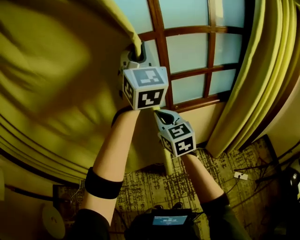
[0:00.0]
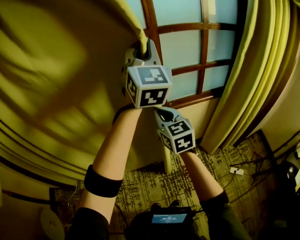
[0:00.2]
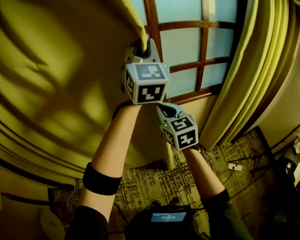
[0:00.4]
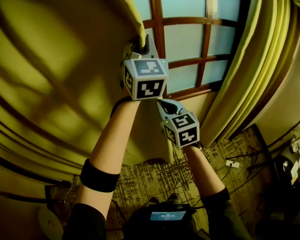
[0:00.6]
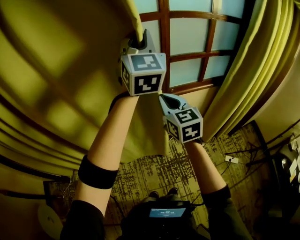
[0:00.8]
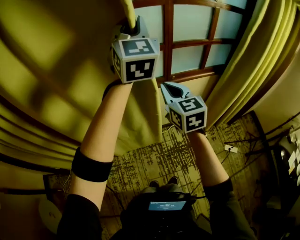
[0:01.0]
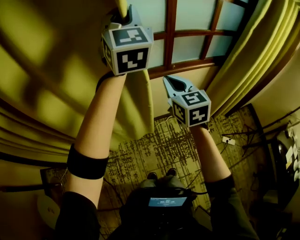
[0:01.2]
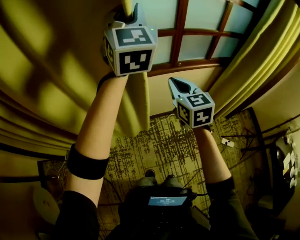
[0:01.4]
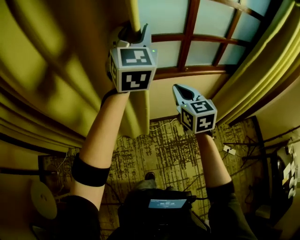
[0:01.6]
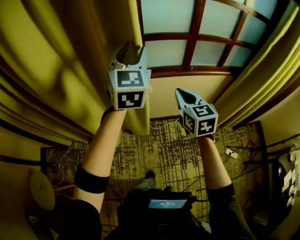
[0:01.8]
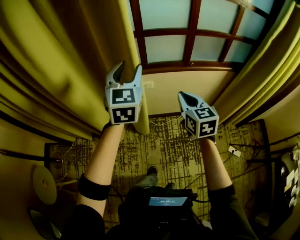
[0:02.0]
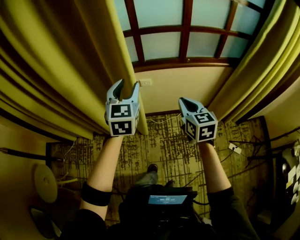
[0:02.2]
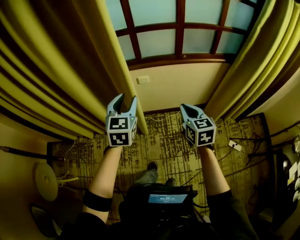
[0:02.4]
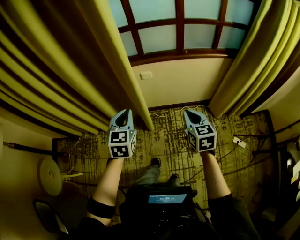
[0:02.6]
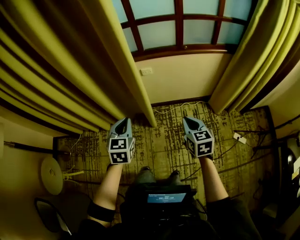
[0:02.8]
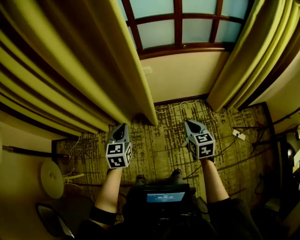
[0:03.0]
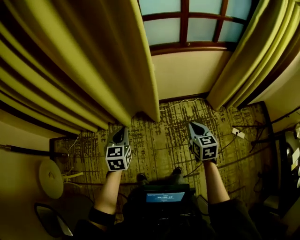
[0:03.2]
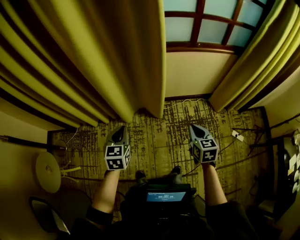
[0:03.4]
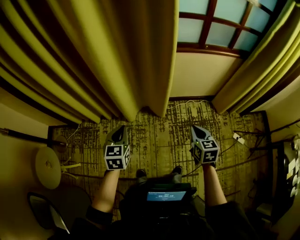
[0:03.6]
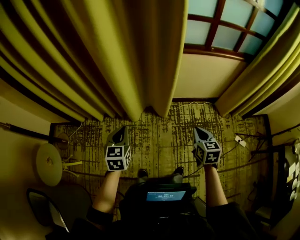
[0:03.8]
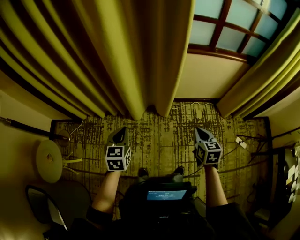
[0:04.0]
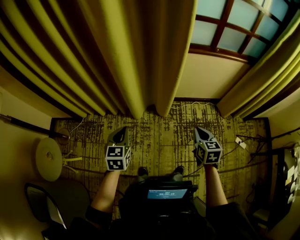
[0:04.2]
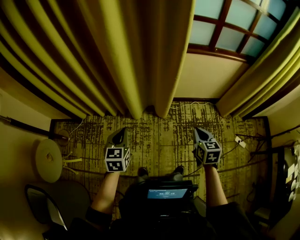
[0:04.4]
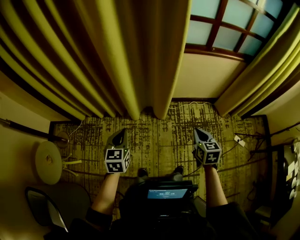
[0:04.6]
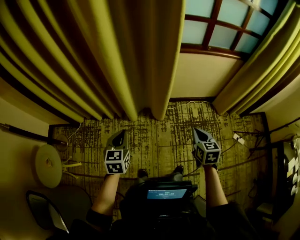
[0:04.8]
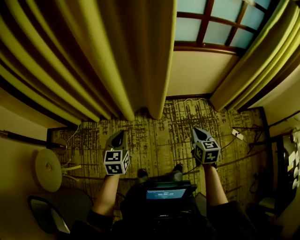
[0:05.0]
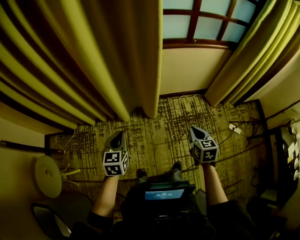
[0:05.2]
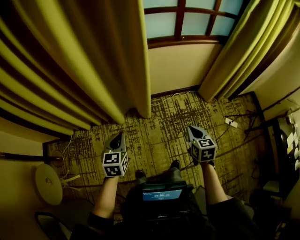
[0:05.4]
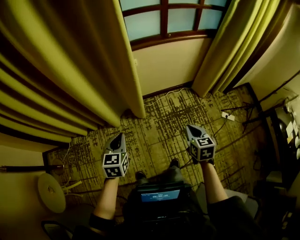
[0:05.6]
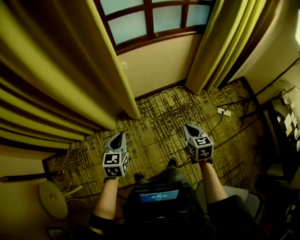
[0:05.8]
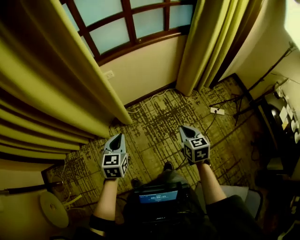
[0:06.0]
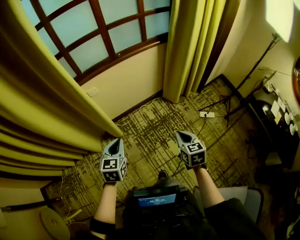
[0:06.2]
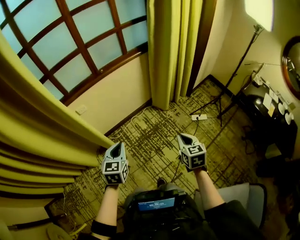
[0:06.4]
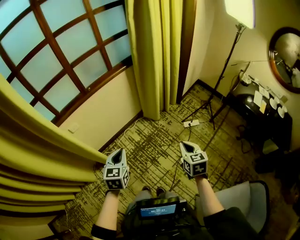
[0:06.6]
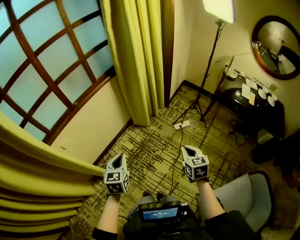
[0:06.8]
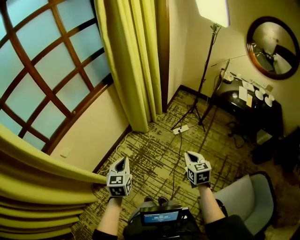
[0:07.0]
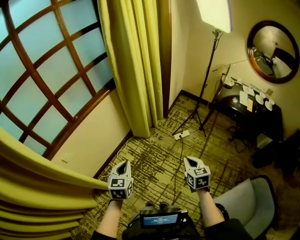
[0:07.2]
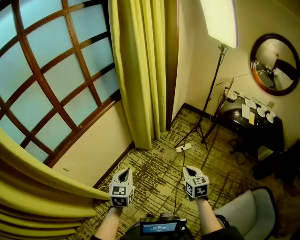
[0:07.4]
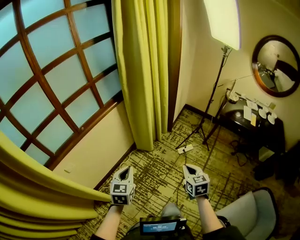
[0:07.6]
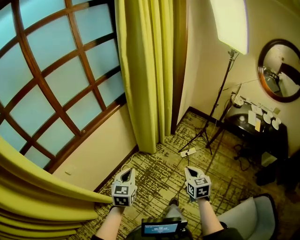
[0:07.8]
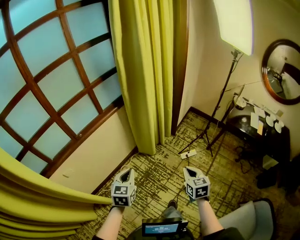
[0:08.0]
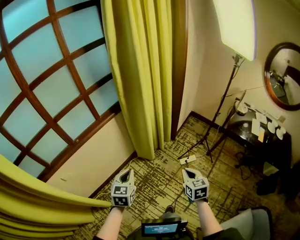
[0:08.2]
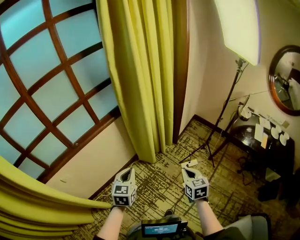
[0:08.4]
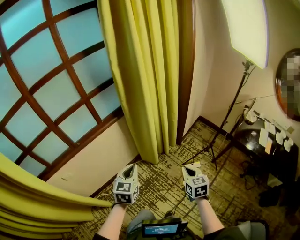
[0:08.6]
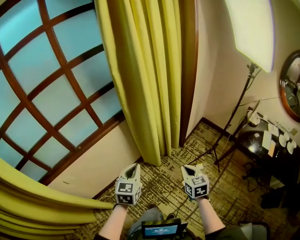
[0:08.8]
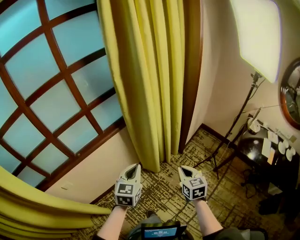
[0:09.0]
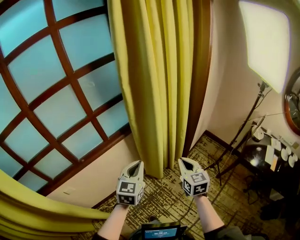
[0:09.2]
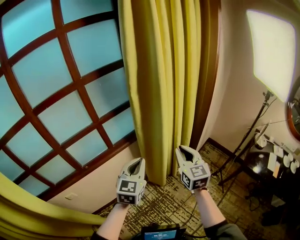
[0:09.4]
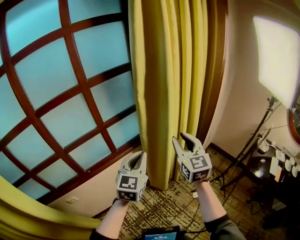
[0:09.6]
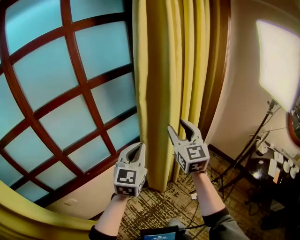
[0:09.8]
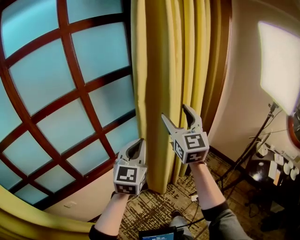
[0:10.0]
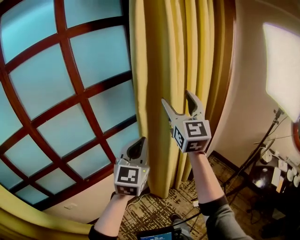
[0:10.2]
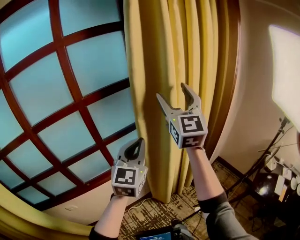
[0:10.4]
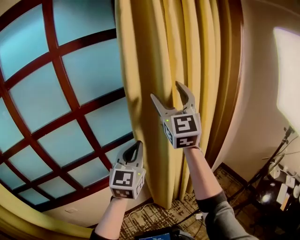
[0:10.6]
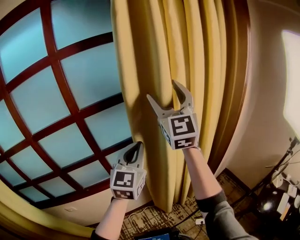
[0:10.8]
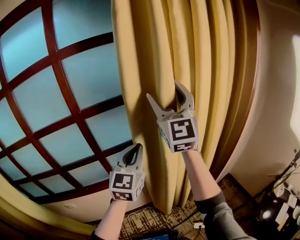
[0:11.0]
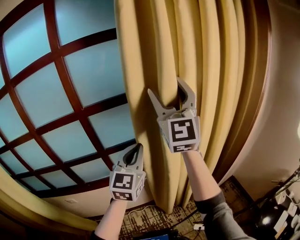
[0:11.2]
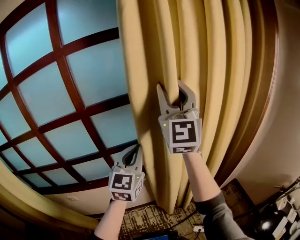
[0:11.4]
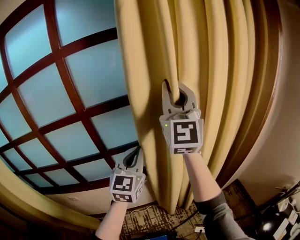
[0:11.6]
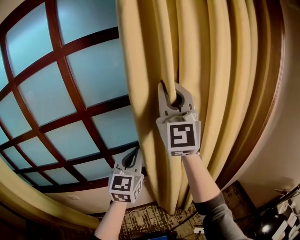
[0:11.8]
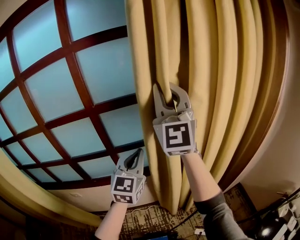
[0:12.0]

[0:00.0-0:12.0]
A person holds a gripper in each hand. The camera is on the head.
0:00.0 to 0:01.6: The left gripper heads to the left and downward, covering about 20 cm, and opens up, while the right gripper shifts approximately 10 cm downward and to the left.
0:01.6 to 0:03.0: The left gripper goes approximately 50 cm downward, backward and to the left, angles its fingers downward, by some 40 degrees, and closes its fingers; the right gripper moves backward and downward, about 35 cm.
0:03.0 to 0:04.4: The two grippers go approximately 20 cm to the left.
0:04.4 to 0:06.0: Both grippers move to the right, approximately 25 cm. The left gripper changes its angle by about 20 degrees.
0:06.0 to 0:07.6: The right gripper shifts by approximately 30 cm, and rotates some 30 degrees; the left gripper moves approximately 35 cm, and turns by some 30 degrees.
0:07.6 to 0:09.0: The right gripper heads forward, covering roughly 30 cm. Meanwhile the left gripper moves forward and to the right, some 30 cm.
0:09.0 to 0:10.4: The left gripper moves upward and forward, some 35 cm, and swivels approximately 30 degrees. Meanwhile the right gripper heads upward and forward, covering some 60 cm, angles its fingers upward, by about 50 degrees, and opens.
0:10.4 to 0:12.0: The left gripper heads forward, covering about 10 cm, and swivels some 20 degrees; the right gripper goes roughly 10 cm upward, forward and to the left, turns by roughly 30 degrees, and closes its fingers.

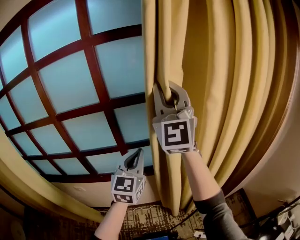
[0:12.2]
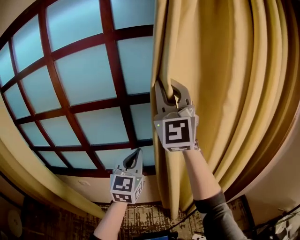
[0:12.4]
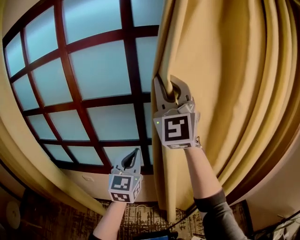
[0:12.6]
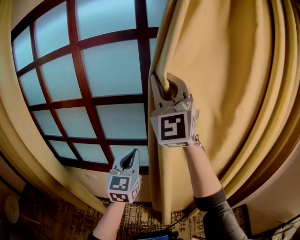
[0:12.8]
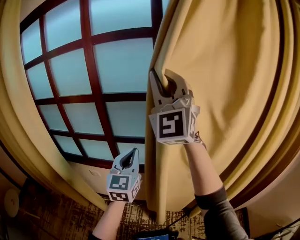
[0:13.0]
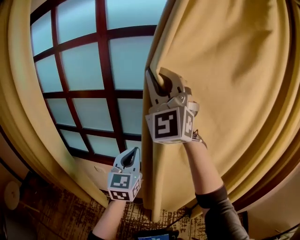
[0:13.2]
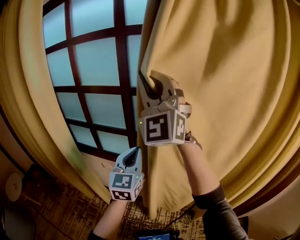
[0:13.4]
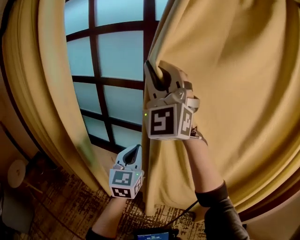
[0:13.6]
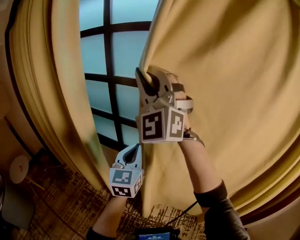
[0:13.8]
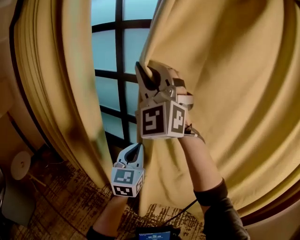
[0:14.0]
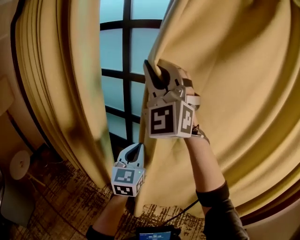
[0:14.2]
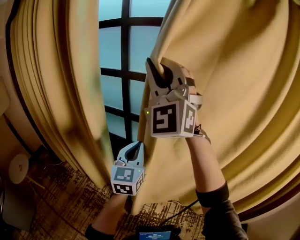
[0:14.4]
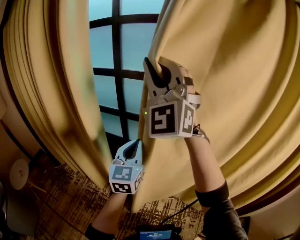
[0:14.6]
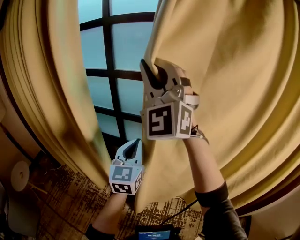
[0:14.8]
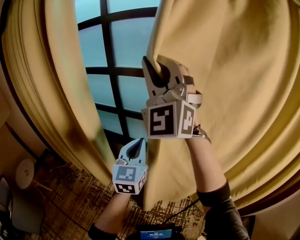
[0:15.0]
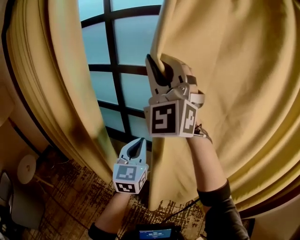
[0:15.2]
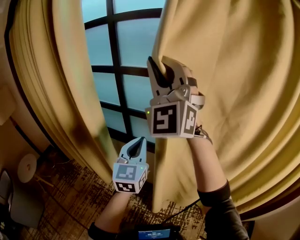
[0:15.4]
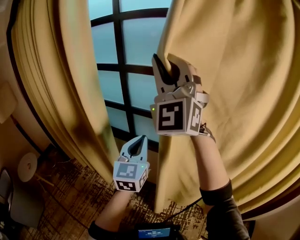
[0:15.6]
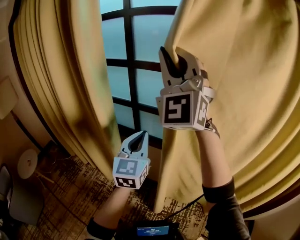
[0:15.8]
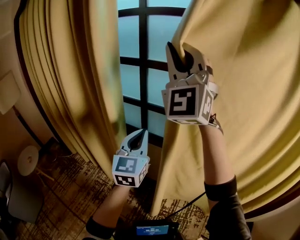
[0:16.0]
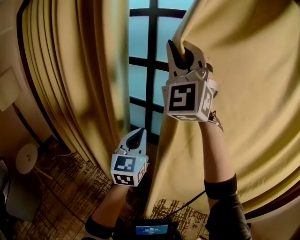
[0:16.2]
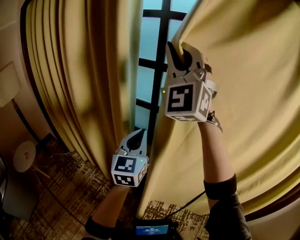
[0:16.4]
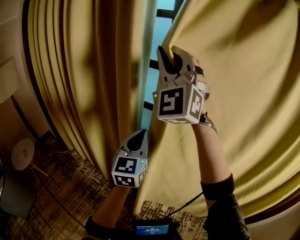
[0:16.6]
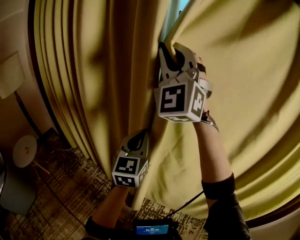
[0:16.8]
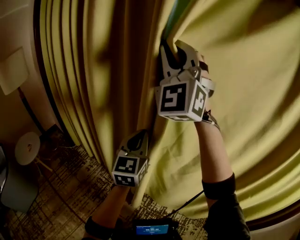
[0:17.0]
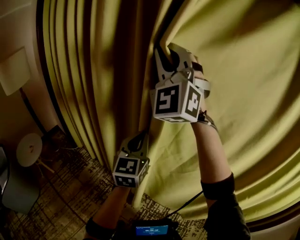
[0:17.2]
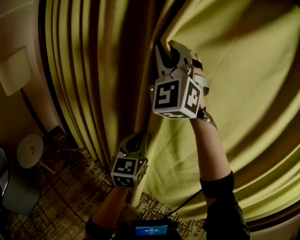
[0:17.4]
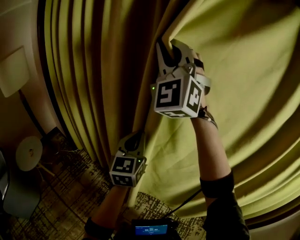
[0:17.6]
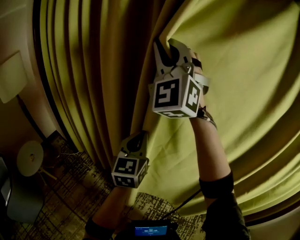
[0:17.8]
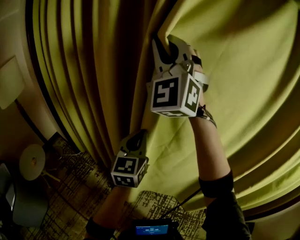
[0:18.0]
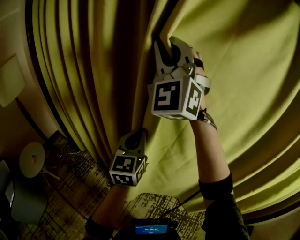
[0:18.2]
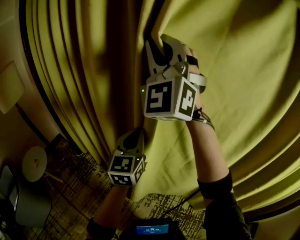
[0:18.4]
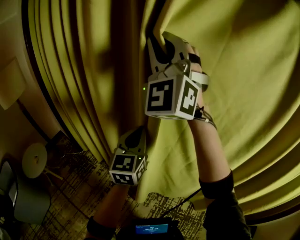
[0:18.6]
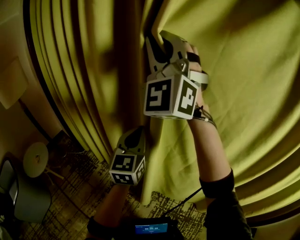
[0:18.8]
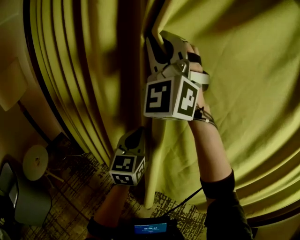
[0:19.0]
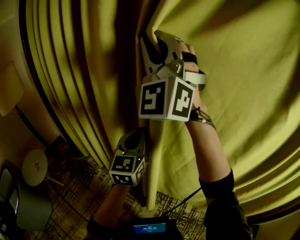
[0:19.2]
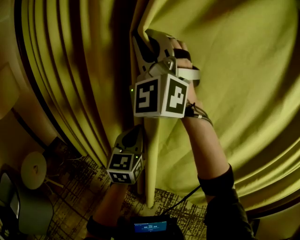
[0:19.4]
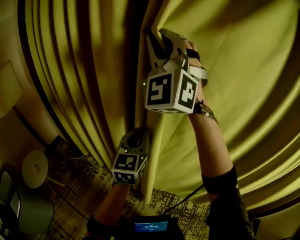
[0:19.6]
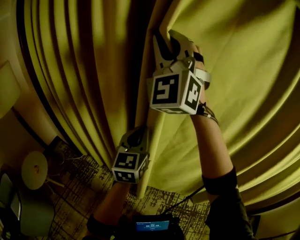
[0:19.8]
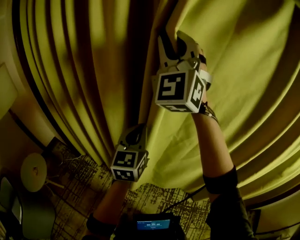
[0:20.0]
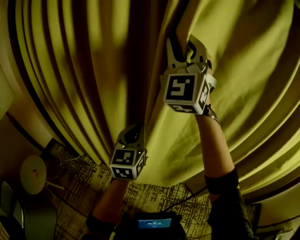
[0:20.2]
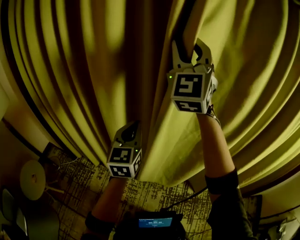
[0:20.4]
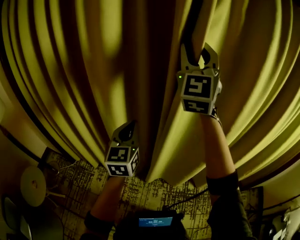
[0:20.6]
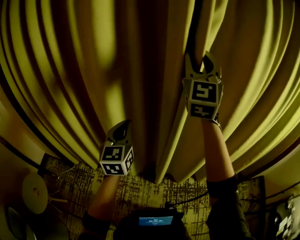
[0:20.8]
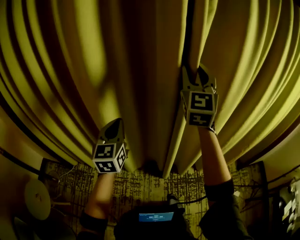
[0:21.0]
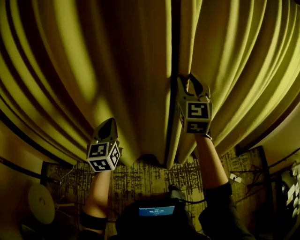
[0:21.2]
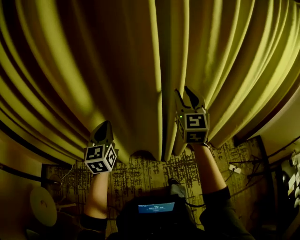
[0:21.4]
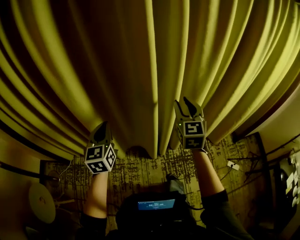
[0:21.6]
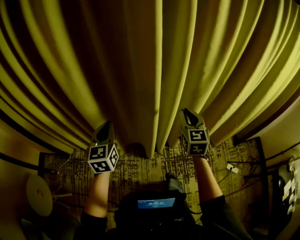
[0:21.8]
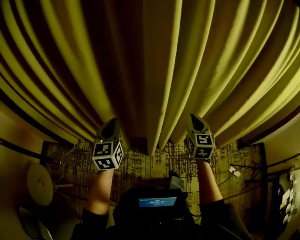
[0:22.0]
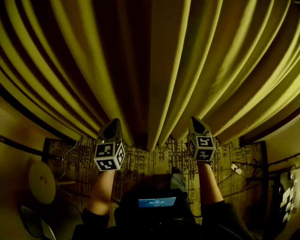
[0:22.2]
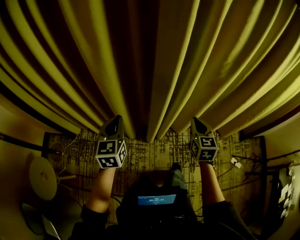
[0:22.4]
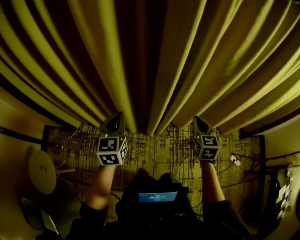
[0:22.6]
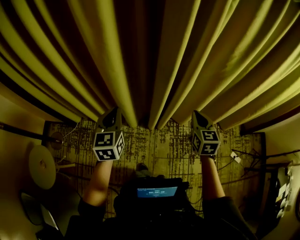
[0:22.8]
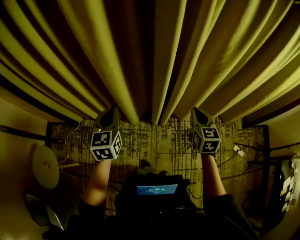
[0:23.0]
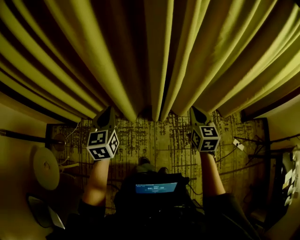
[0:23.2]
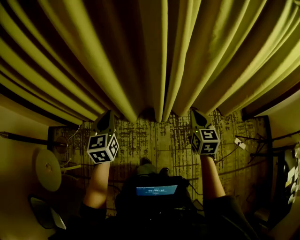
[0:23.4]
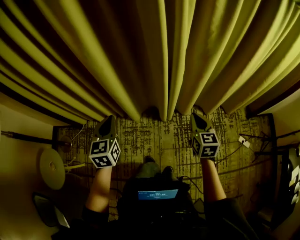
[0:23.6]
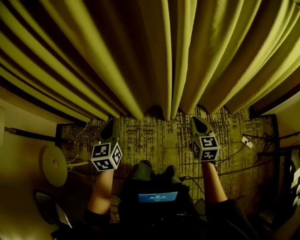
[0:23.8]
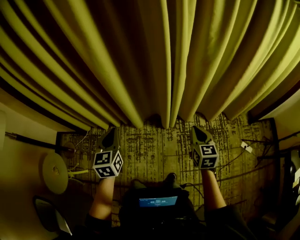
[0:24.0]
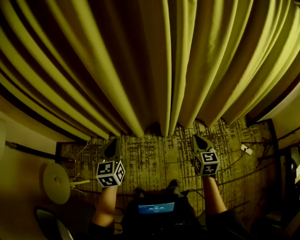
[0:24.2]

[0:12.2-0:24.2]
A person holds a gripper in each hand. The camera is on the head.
0:12.2 to 0:13.8: Both grippers are carried roughly 50 cm. The right gripper turns by about 40 degrees. The left gripper rotates about 30 degrees.
0:13.8 to 0:15.2: The left gripper goes to the left and returns, about 10 cm each way.
0:15.2 to 0:16.6: Both grippers move to the left, approximately 20 cm.
0:16.6 to 0:18.2: The two grippers go approximately 25 cm to the left and forward.
0:18.2 to 0:19.8: Both grippers move to the left, approximately 5 cm.
0:19.8 to 0:21.2: The right gripper ends up some 35 cm from where it was, and rotates roughly 50 degrees. The left gripper travels downward by approximately 10 cm.
0:21.2 to 0:22.6: The right gripper shifts some 30 cm downward, angles its fingers downward, by some 30 degrees, and closes up. Meanwhile the left gripper goes some 15 cm downward, backward and to the left.
0:22.6 to 0:24.2: The grippers both shift backward by about 15 cm.
